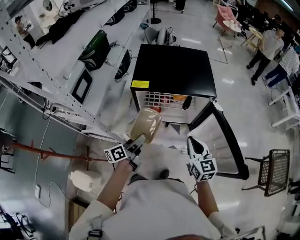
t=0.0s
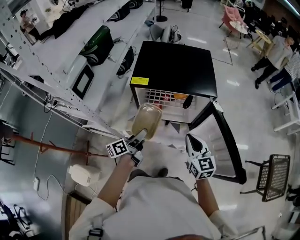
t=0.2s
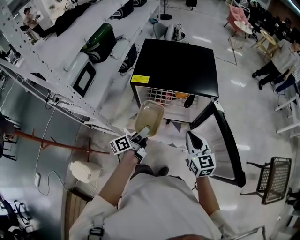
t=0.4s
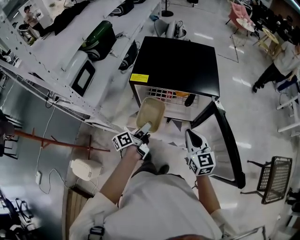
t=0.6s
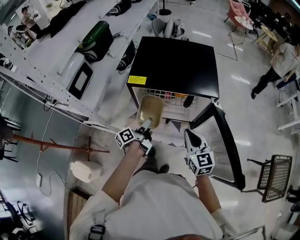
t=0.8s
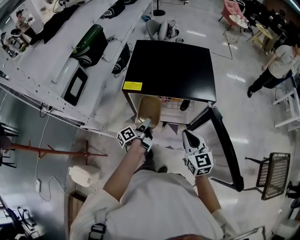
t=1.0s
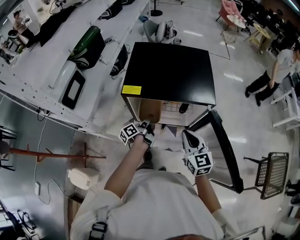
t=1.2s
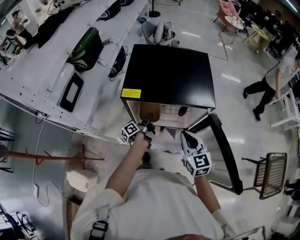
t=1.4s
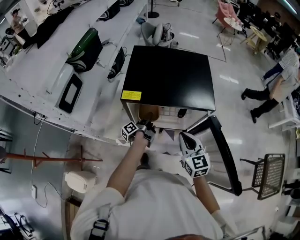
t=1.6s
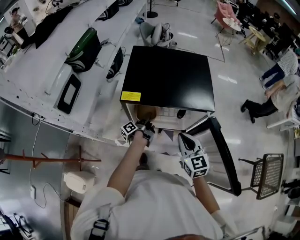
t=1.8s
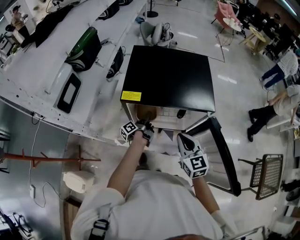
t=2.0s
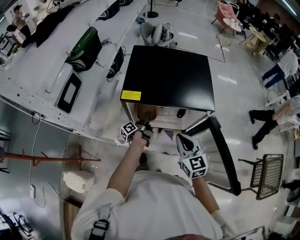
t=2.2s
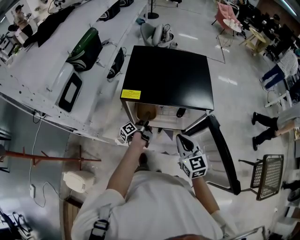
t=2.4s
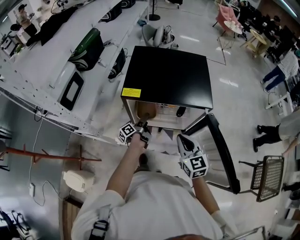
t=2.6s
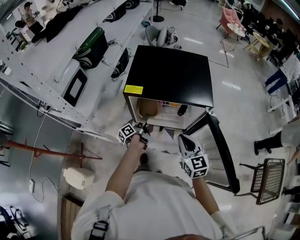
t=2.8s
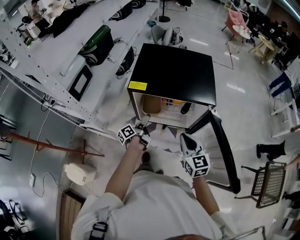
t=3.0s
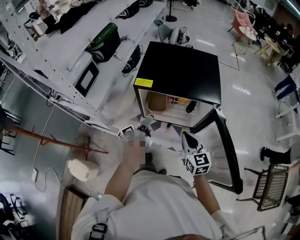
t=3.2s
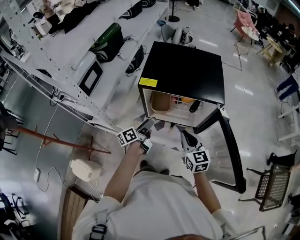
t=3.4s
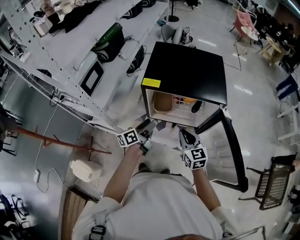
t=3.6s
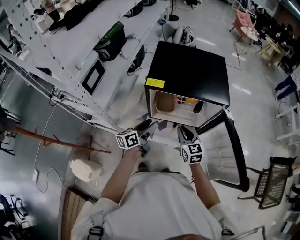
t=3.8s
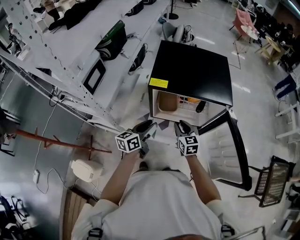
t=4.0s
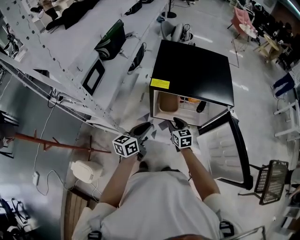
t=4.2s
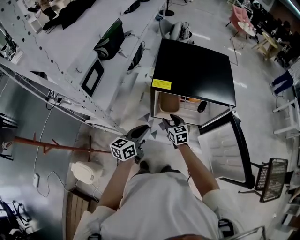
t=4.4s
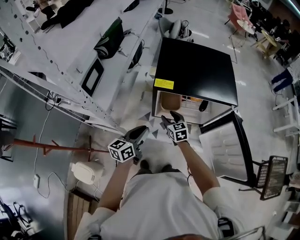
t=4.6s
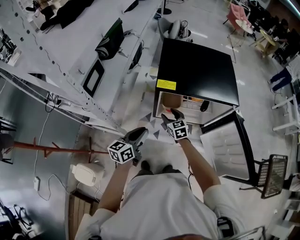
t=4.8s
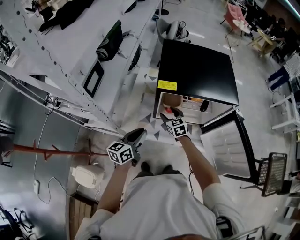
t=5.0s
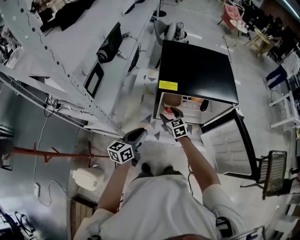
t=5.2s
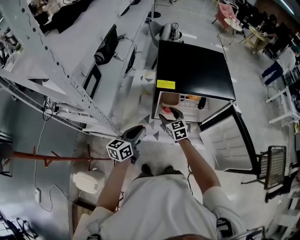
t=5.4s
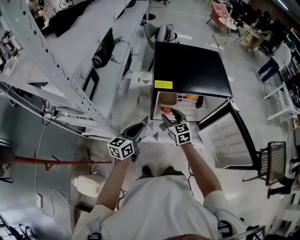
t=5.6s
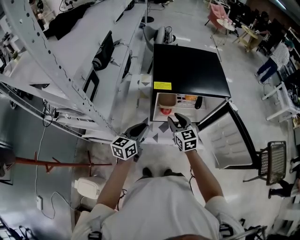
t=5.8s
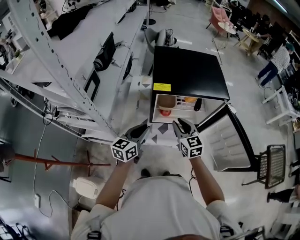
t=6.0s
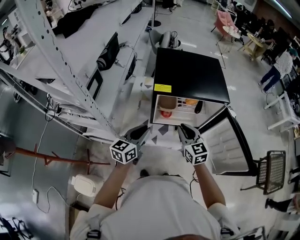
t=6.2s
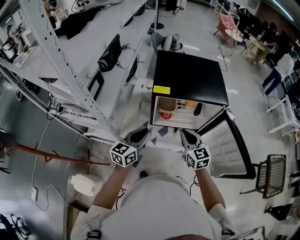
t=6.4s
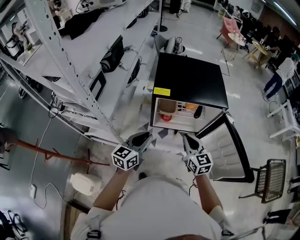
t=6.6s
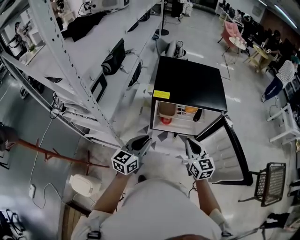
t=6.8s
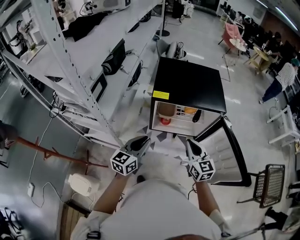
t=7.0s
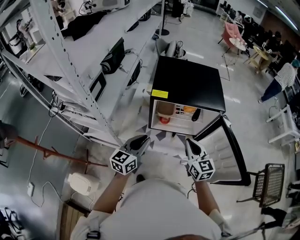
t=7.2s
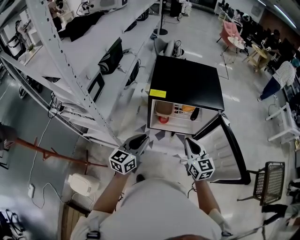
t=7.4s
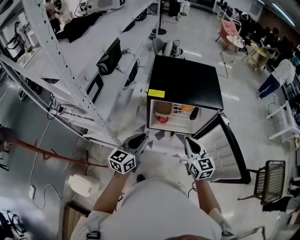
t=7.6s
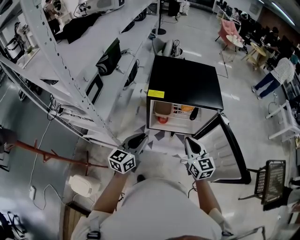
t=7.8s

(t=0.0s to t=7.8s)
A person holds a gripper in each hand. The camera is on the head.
t=0.0s - t=1.6s: The left gripper goes approximately 25 cm forward and downward, and changes its angle by about 40 degrees; the right gripper heads forward, covering approximately 10 cm.
t=1.6s - t=3.2s: The left gripper is displaced backward and upward by approximately 10 cm, rotates approximately 20 degrees, and opens its fingers.
t=3.2s - t=4.6s: The right gripper travels to the left, downward and forward by about 25 cm, and opens its fingers; the left gripper moves to the left, backward and upward, approximately 15 cm, twists roughly 40 degrees clockwise, seen from behind, and closes up.
t=4.6s - t=6.2s: The left gripper shifts about 5 cm upward, while the right gripper shifts roughly 20 cm upward and backward, and closes its fingers.
t=6.2s - t=7.8s: The right gripper heads to the right, covering about 5 cm, while the left gripper changes place by approximately 5 cm.

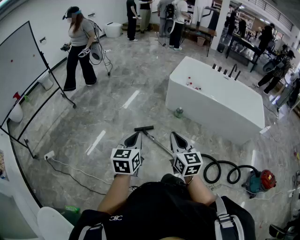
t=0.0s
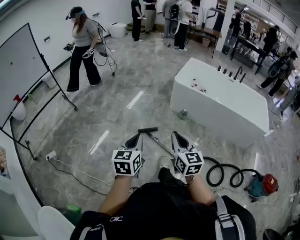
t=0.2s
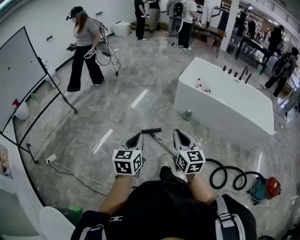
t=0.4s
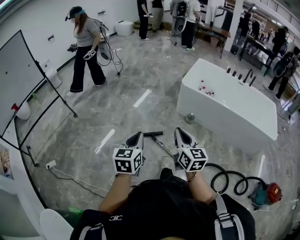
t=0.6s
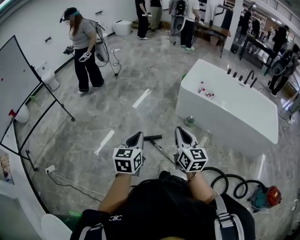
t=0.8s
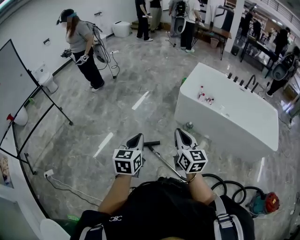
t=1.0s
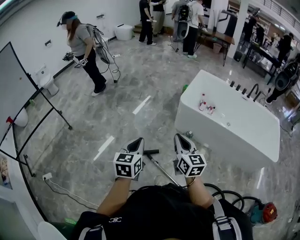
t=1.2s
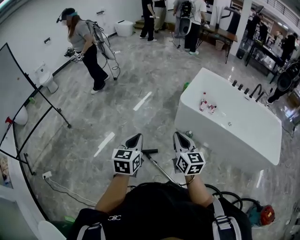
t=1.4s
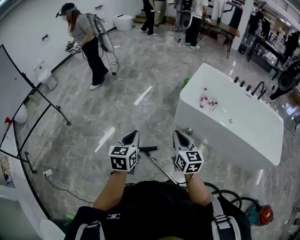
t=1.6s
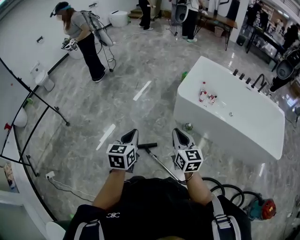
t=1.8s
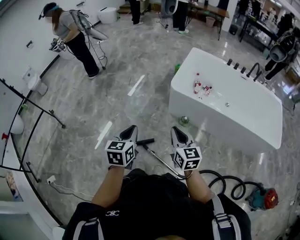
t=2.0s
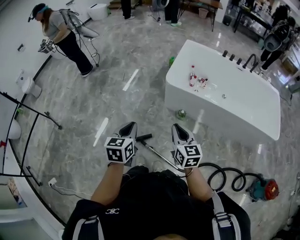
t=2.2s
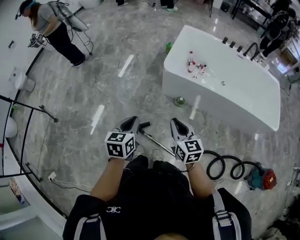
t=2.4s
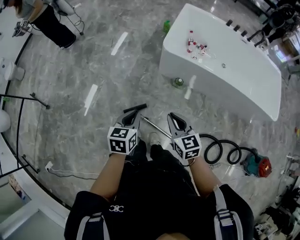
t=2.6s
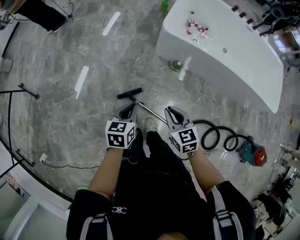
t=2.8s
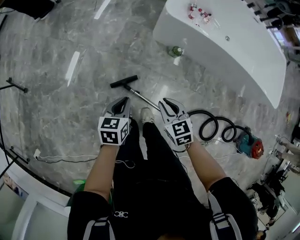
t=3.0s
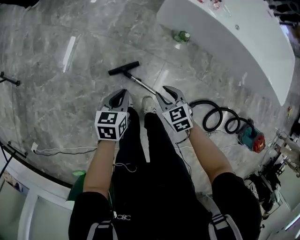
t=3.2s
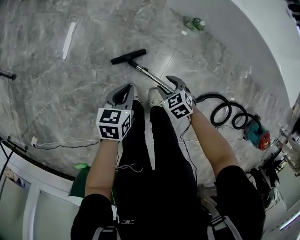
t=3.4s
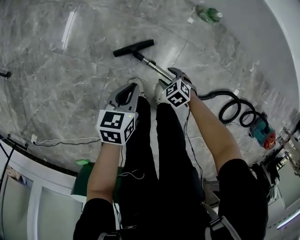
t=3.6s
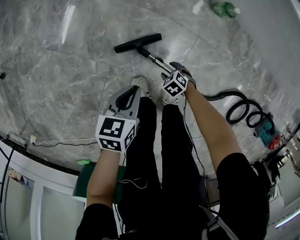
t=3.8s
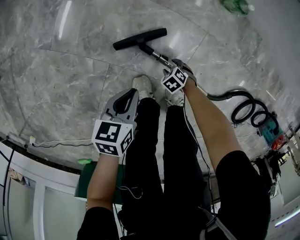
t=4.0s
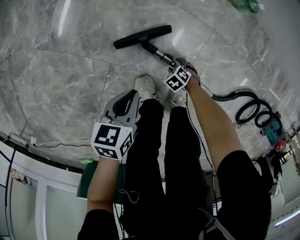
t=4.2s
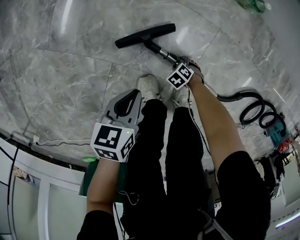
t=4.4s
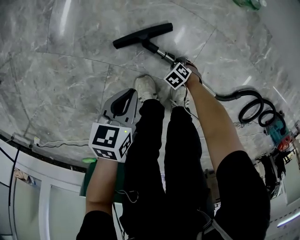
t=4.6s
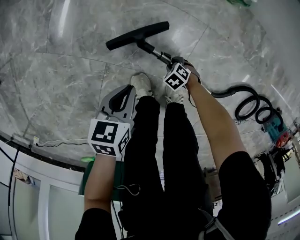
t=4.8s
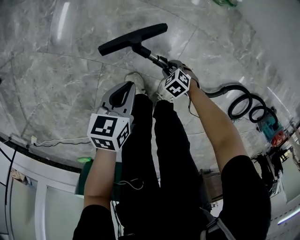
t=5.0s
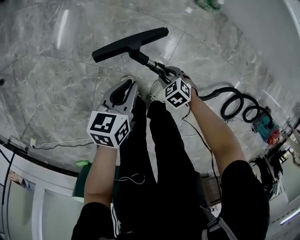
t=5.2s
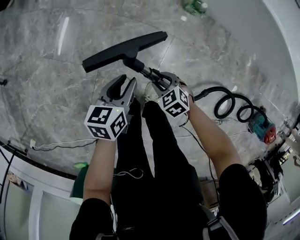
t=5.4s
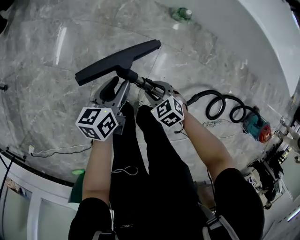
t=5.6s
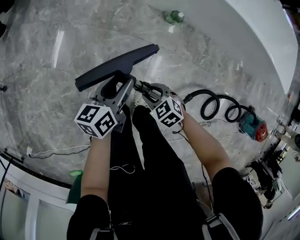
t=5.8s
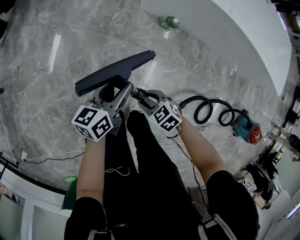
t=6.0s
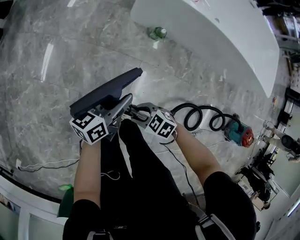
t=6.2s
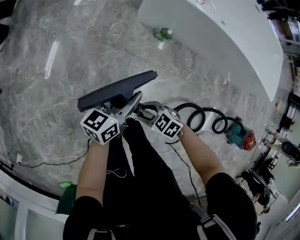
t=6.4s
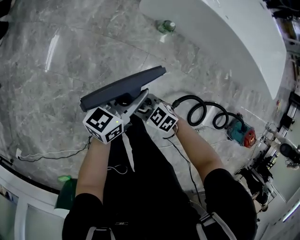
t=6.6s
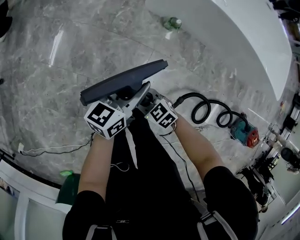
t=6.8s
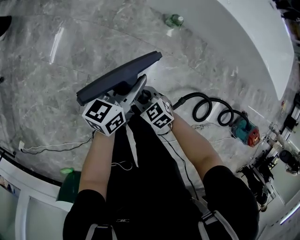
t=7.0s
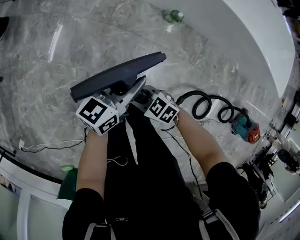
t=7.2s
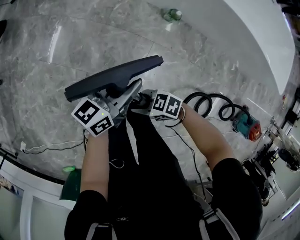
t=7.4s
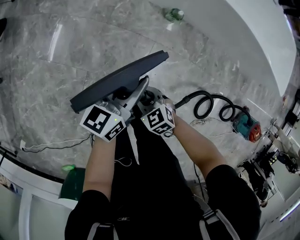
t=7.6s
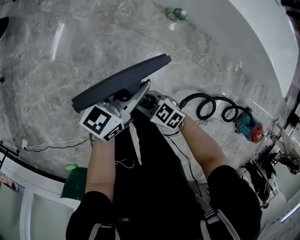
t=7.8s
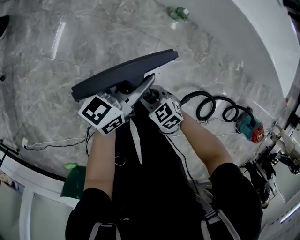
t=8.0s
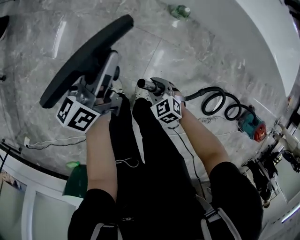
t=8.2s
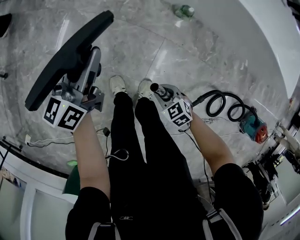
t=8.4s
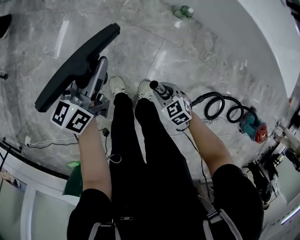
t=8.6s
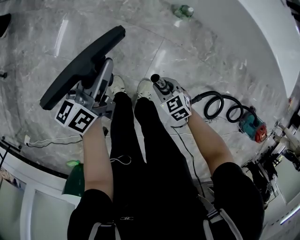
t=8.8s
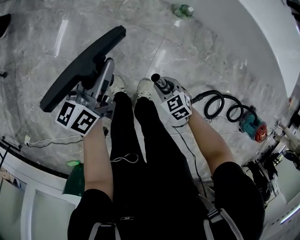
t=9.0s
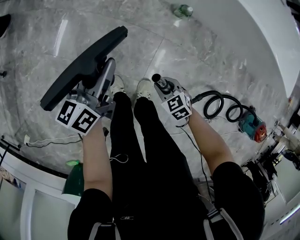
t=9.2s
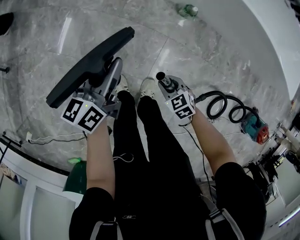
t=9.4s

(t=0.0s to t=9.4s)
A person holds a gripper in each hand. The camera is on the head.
t=0.0s - t=1.6s: The pair of grippers is taken forward, about 40 cm.
t=1.6s - t=3.2s: The grippers both shift downward by approximately 40 cm. The left gripper swivels some 30 degrees, while the right gripper points its fingers some 40 degrees further downward, and opens its fingers.
t=3.2s - t=4.8s: The right gripper is displaced downward by some 60 cm, and rotates approximately 40 degrees. The left gripper goes about 35 cm downward.
t=4.8s - t=6.2s: Both grippers move upward, about 40 cm. The right gripper rotates roughly 30 degrees, while the left gripper angles its fingers upward, by approximately 40 degrees, and opens.
t=7.8s - t=9.4s: The left gripper moves about 10 cm, and changes its angle by about 20 degrees, while the right gripper ends up about 10 cm from where it was, and turns by about 30 degrees.

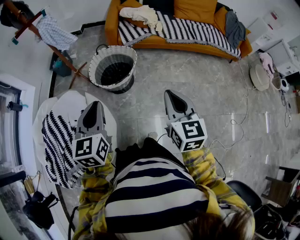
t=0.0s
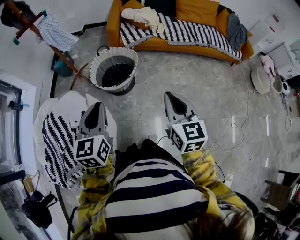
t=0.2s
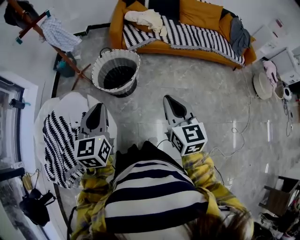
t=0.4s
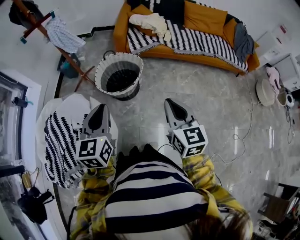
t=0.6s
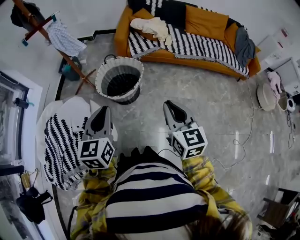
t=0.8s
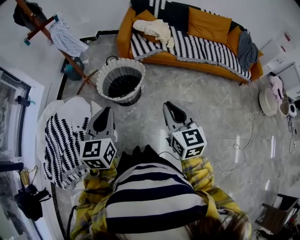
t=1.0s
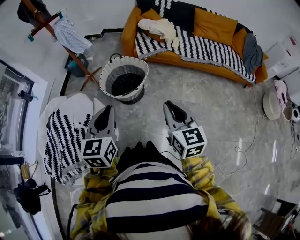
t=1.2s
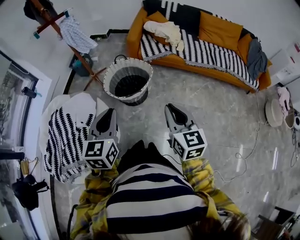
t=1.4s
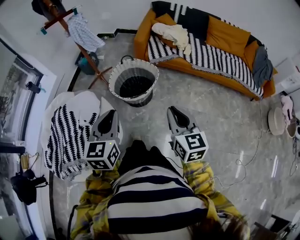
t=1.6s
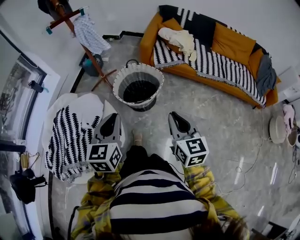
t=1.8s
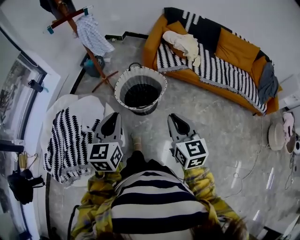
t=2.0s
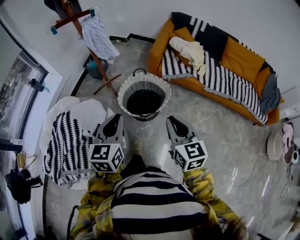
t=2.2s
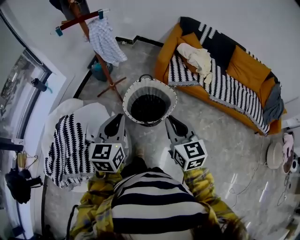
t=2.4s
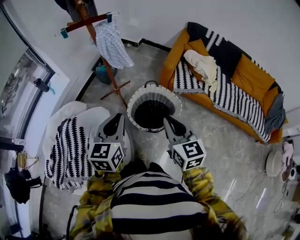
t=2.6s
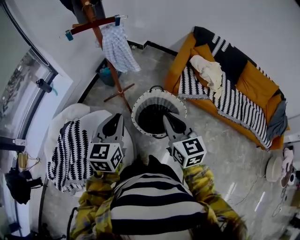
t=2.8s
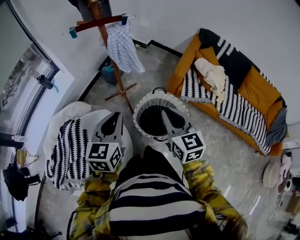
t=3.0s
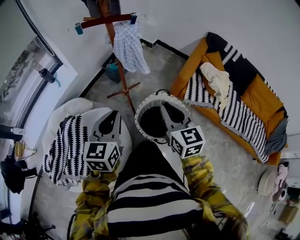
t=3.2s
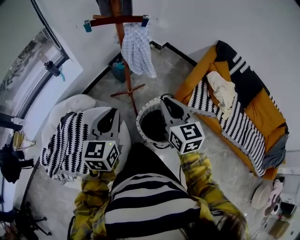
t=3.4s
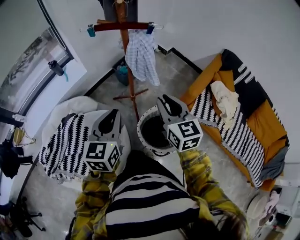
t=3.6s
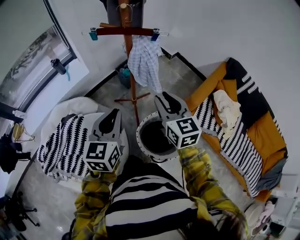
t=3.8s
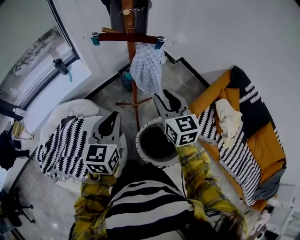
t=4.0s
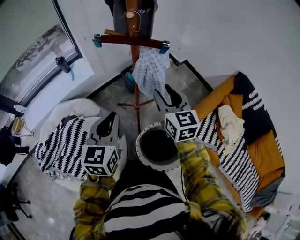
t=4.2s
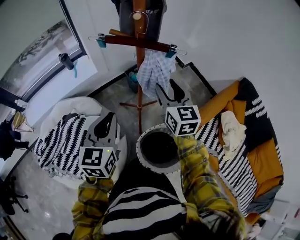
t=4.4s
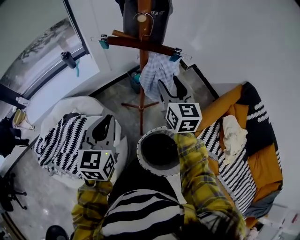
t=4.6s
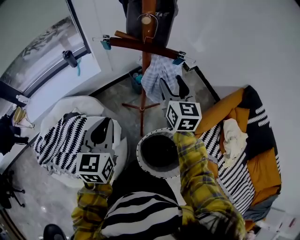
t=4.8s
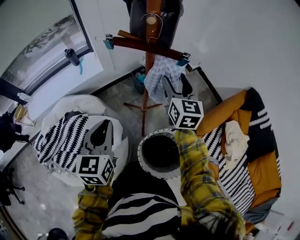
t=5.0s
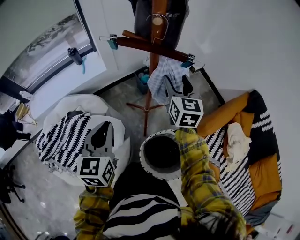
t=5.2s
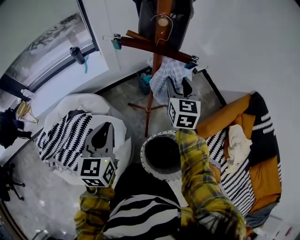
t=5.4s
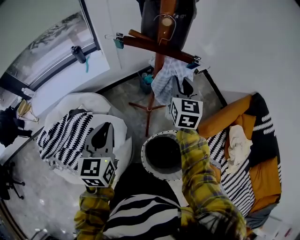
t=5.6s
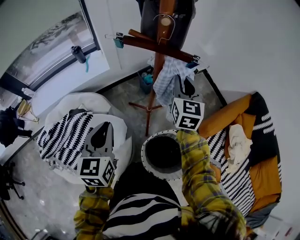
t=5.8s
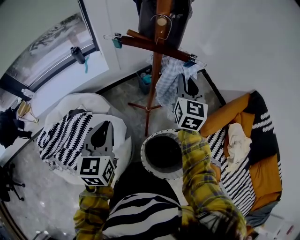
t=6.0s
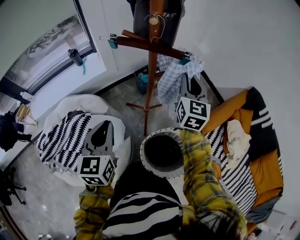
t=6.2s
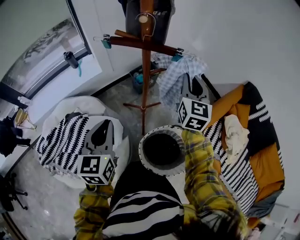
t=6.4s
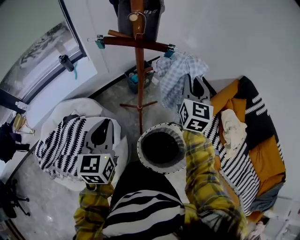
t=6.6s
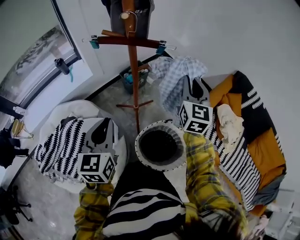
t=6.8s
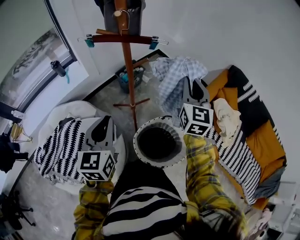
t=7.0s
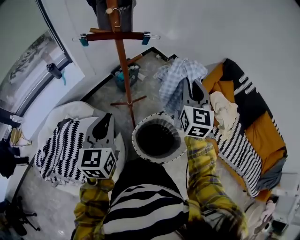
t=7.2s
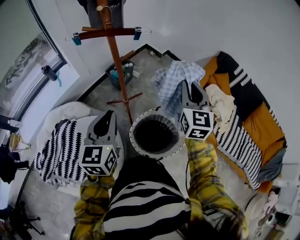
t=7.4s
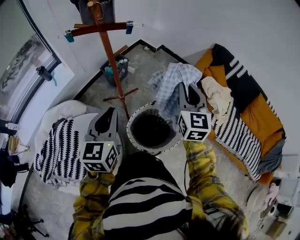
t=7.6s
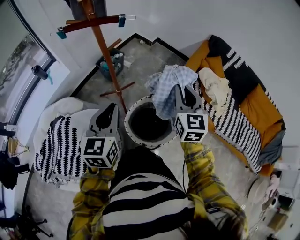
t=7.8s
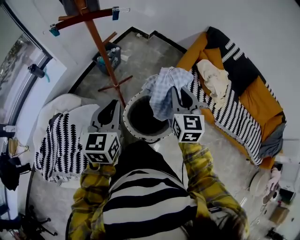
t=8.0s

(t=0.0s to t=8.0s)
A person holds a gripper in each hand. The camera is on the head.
t=0.0s - t=1.6s: The left gripper is displaced to the right by roughly 5 cm; the right gripper moves forward, approximately 5 cm.
t=1.6s - t=3.2s: Both grippers move forward and to the left, roughly 35 cm. The right gripper turns by some 20 degrees.
t=3.2s - t=4.8s: The left gripper goes approximately 15 cm forward, and turns by roughly 30 degrees, while the right gripper travels forward by approximately 35 cm, and opens its fingers.
t=4.8s - t=6.4s: The right gripper goes approximately 5 cm to the right, and closes its fingers.
t=6.4s - t=8.0s: The right gripper shifts approximately 30 cm backward and to the right. The left gripper shifts about 15 cm to the right, and changes its angle by roughly 30 degrees.
